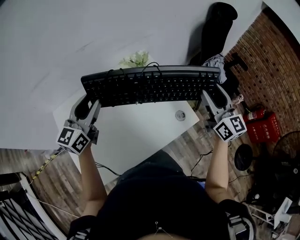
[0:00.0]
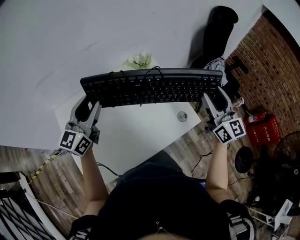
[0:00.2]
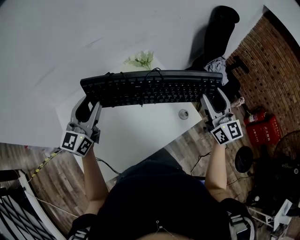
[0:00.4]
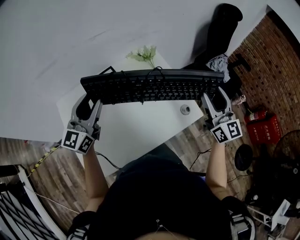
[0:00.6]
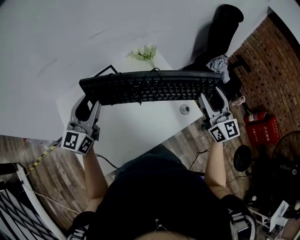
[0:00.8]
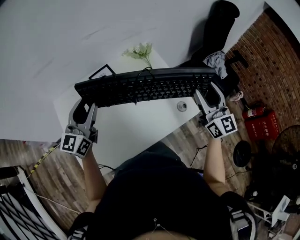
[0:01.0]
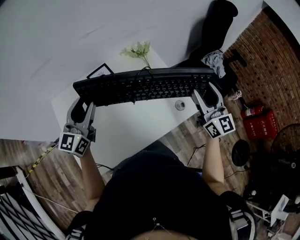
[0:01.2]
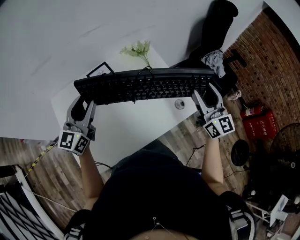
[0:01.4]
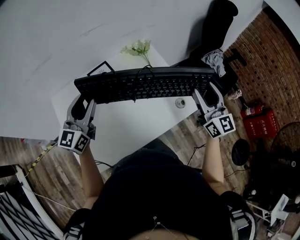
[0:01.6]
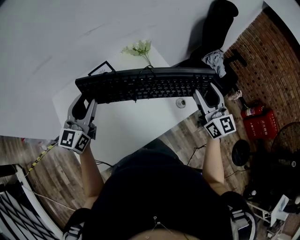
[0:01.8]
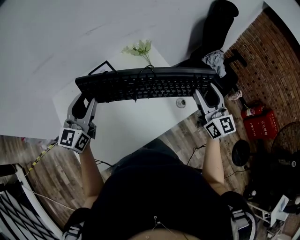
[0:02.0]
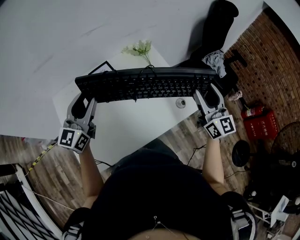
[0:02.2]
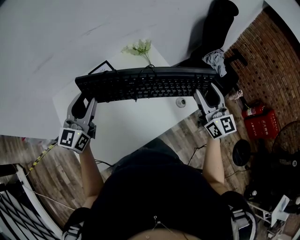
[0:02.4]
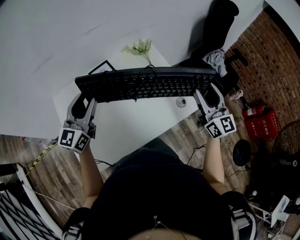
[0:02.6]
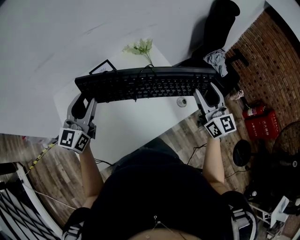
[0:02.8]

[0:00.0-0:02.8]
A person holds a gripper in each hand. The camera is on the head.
0:00.0 to 0:01.4: The grippers both shift backward by roughly 5 cm.
0:01.4 to 0:02.8: Neither gripper changes place.

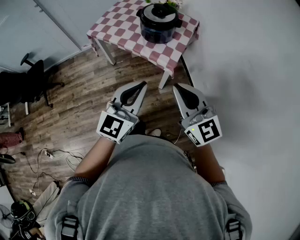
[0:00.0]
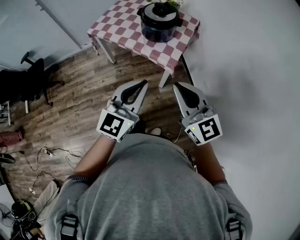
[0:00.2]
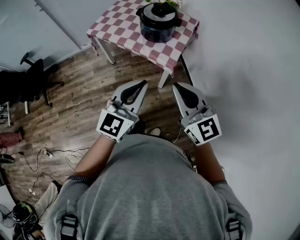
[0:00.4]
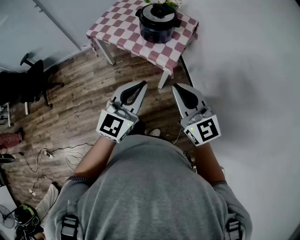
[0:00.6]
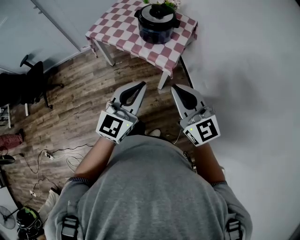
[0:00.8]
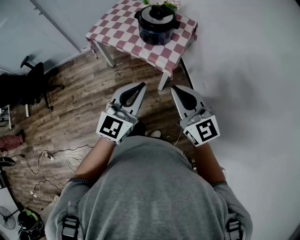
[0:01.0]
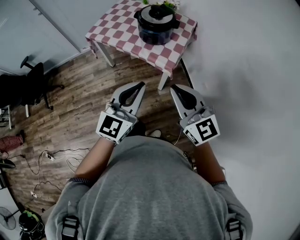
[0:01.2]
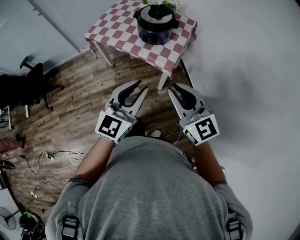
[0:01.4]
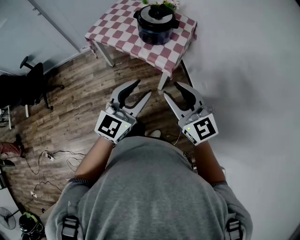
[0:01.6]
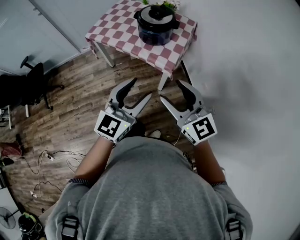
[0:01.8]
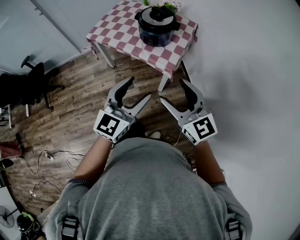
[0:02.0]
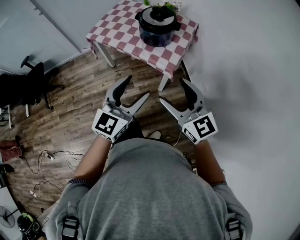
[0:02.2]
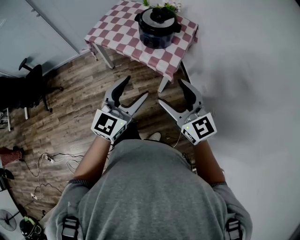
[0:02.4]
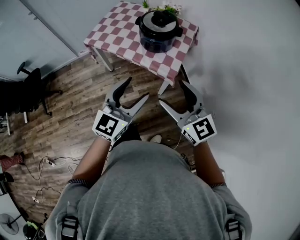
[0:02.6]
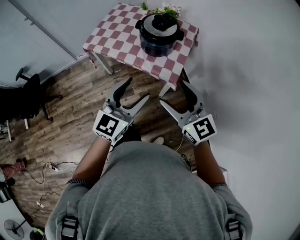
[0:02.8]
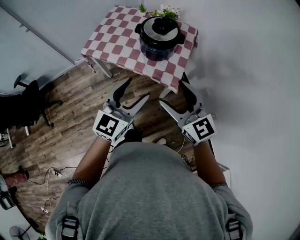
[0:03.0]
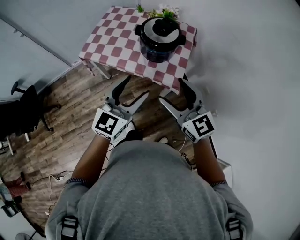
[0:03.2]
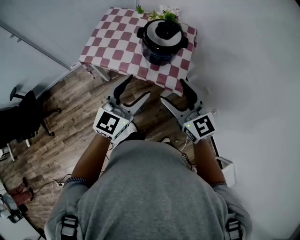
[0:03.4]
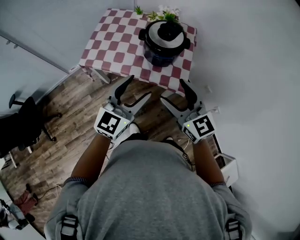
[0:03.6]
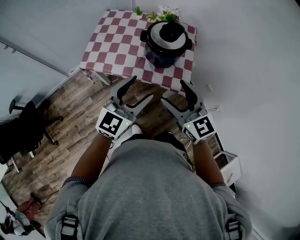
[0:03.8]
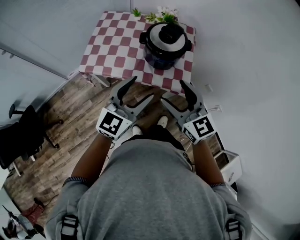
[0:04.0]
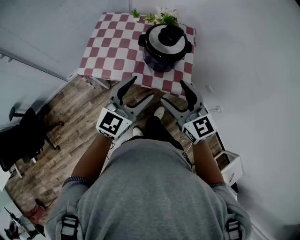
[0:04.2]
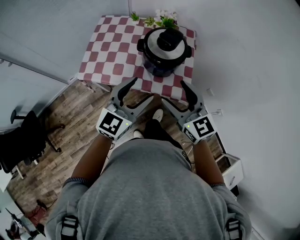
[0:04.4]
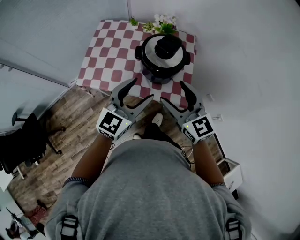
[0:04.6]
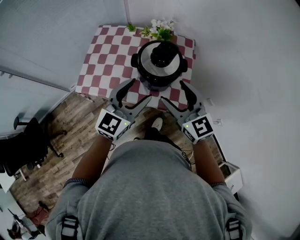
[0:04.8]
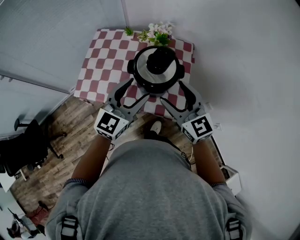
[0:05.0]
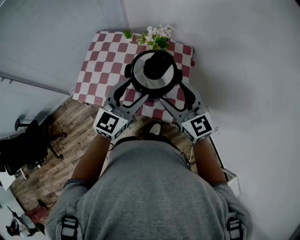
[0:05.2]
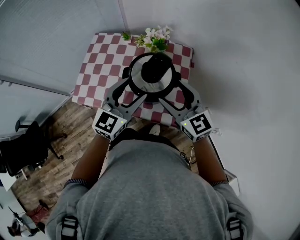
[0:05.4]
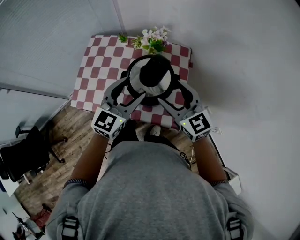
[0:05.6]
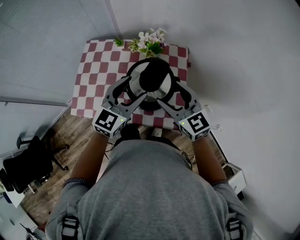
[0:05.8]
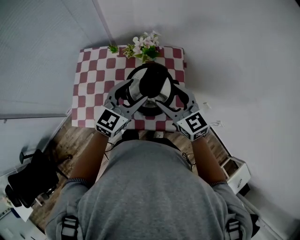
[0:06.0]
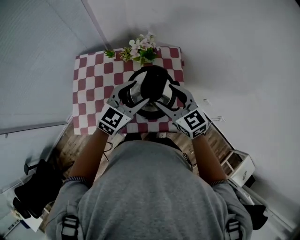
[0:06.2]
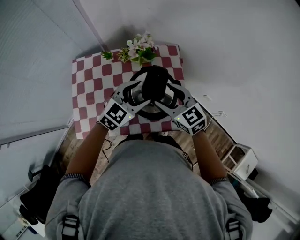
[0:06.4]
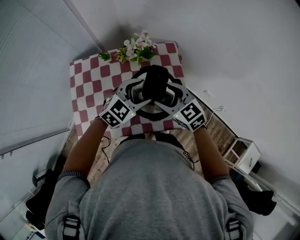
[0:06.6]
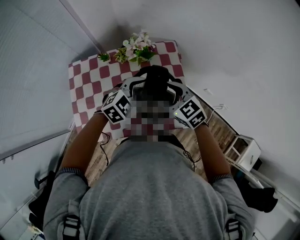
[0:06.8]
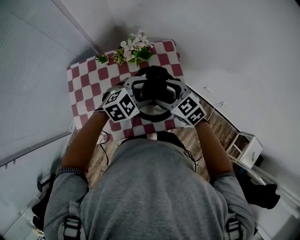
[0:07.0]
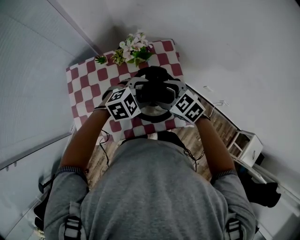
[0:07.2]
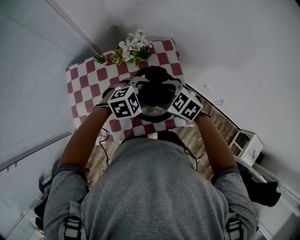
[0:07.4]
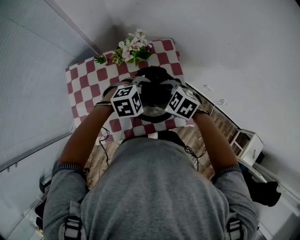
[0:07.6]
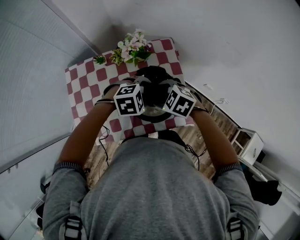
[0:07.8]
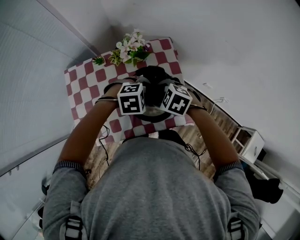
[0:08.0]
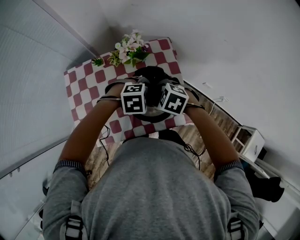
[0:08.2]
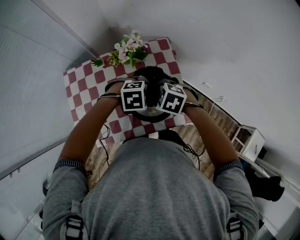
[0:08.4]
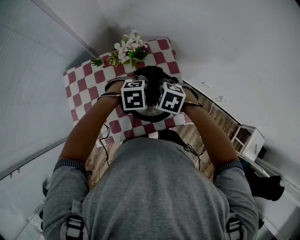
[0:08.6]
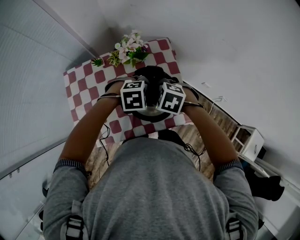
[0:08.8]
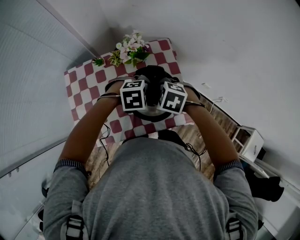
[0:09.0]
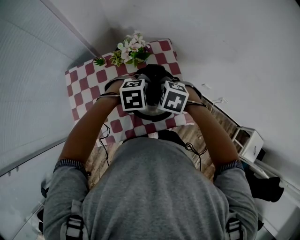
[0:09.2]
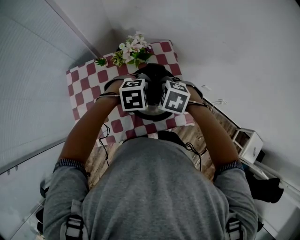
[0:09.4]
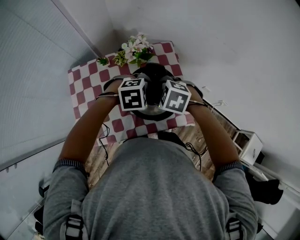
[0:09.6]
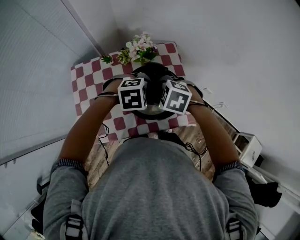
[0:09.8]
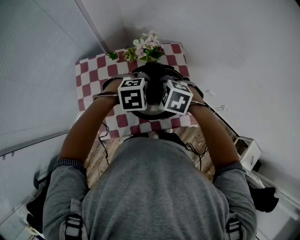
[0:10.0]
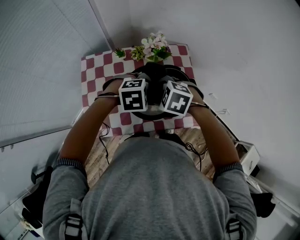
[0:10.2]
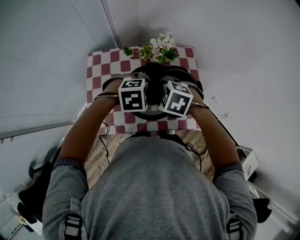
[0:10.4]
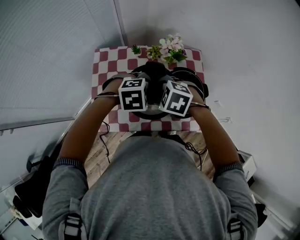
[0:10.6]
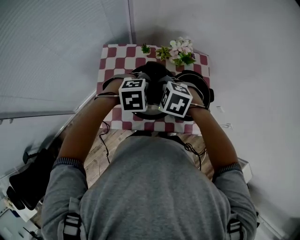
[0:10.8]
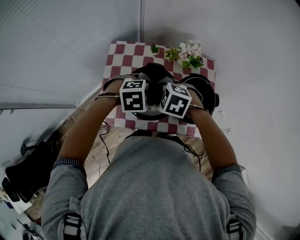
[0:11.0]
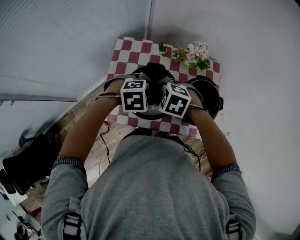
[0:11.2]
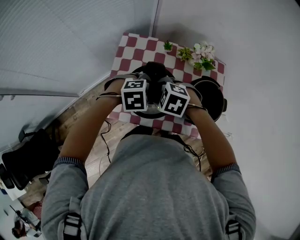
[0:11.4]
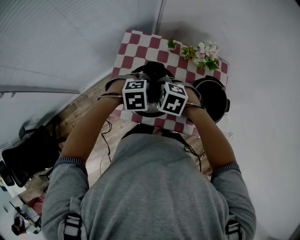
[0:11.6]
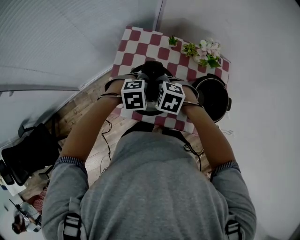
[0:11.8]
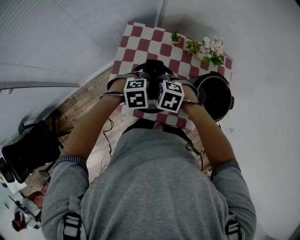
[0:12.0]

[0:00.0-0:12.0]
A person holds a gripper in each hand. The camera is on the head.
0:00.0 to 0:01.6: The right gripper opens up; the left gripper opens.
0:01.6 to 0:03.0: Both grippers move forward and to the left, about 15 cm. The left gripper opens. Meanwhile the right gripper opens up.
0:03.0 to 0:04.4: Both grippers move forward and to the left, approximately 15 cm.
0:04.4 to 0:06.0: Both grippers move forward, about 25 cm.
0:06.0 to 0:07.6: The grippers both shift downward by about 10 cm. The right gripper points its fingers roughly 40 degrees further downward, while the left gripper tilts its fingers approximately 40 degrees downward.
0:07.6 to 0:09.0: The grippers make only small movements.
0:09.0 to 0:10.4: The right gripper ends up about 15 cm from where it was; the left gripper ends up some 15 cm from where it was.
0:10.4 to 0:12.0: The right gripper shifts by some 20 cm, and changes its angle by roughly 20 degrees. Meanwhile the left gripper shifts by approximately 20 cm, and swivels about 20 degrees.

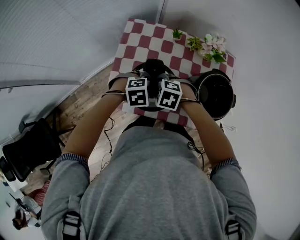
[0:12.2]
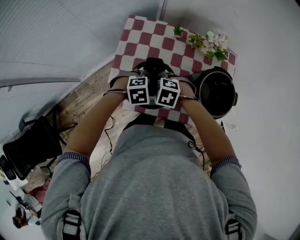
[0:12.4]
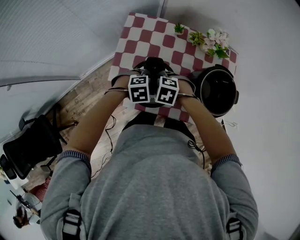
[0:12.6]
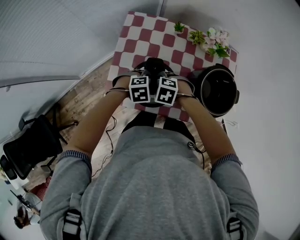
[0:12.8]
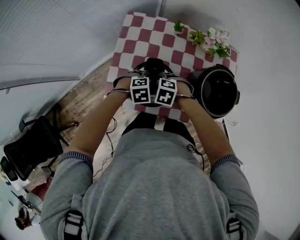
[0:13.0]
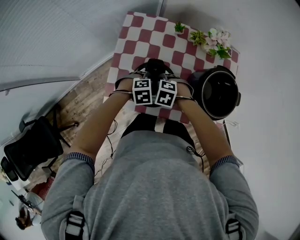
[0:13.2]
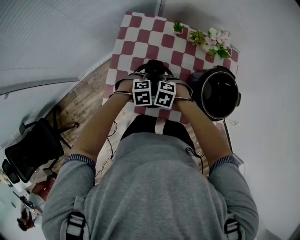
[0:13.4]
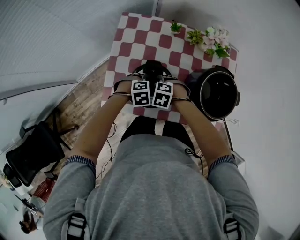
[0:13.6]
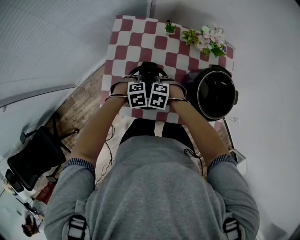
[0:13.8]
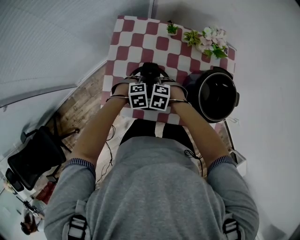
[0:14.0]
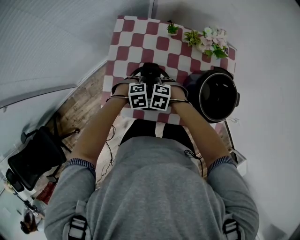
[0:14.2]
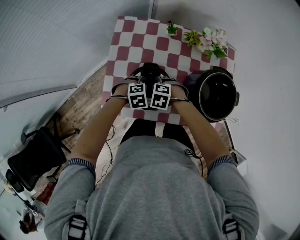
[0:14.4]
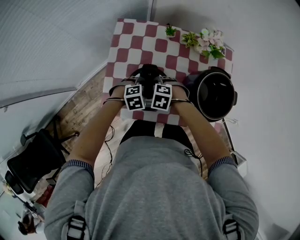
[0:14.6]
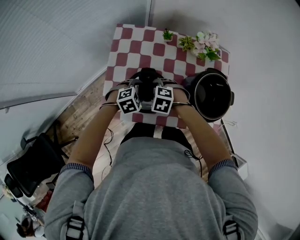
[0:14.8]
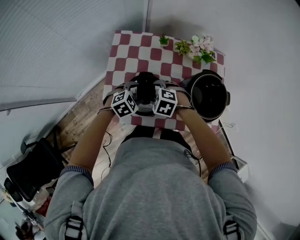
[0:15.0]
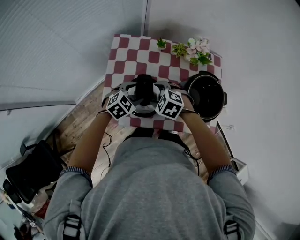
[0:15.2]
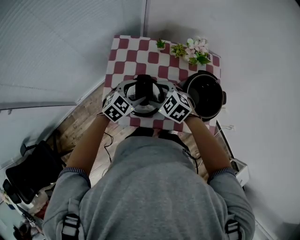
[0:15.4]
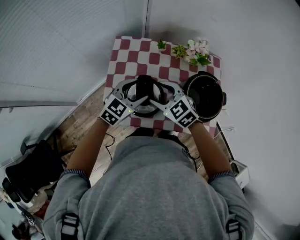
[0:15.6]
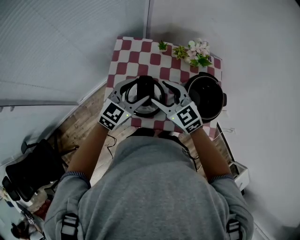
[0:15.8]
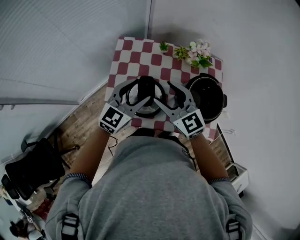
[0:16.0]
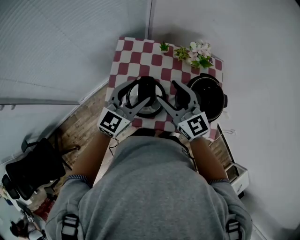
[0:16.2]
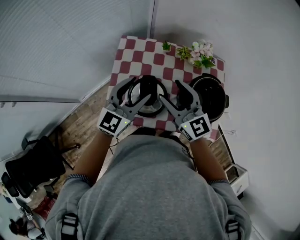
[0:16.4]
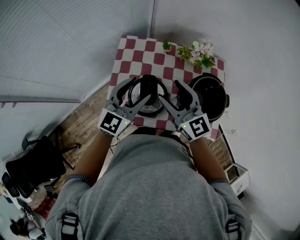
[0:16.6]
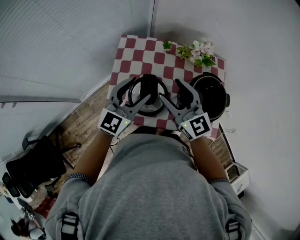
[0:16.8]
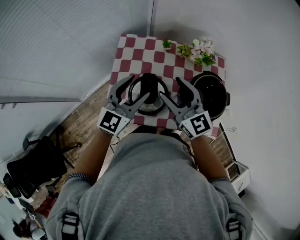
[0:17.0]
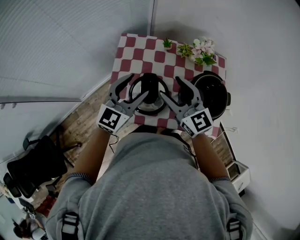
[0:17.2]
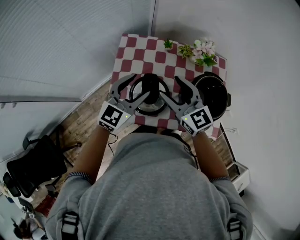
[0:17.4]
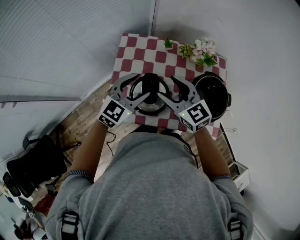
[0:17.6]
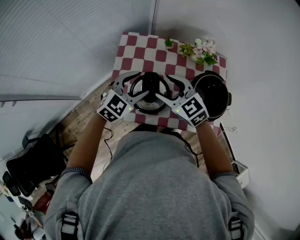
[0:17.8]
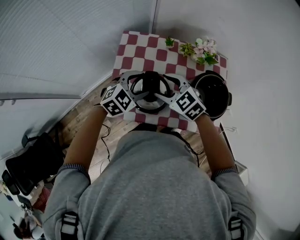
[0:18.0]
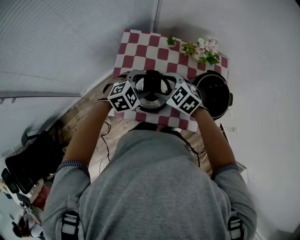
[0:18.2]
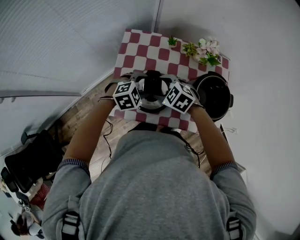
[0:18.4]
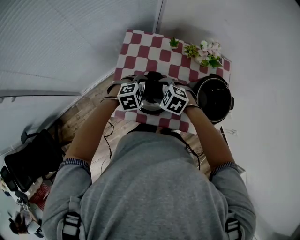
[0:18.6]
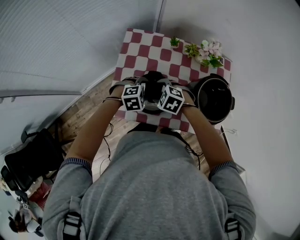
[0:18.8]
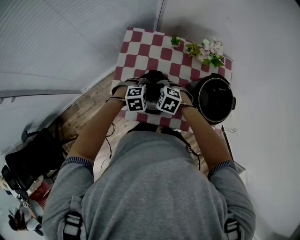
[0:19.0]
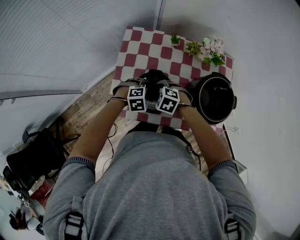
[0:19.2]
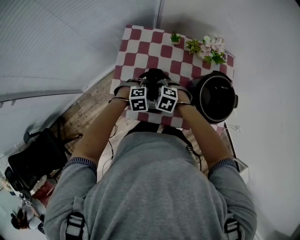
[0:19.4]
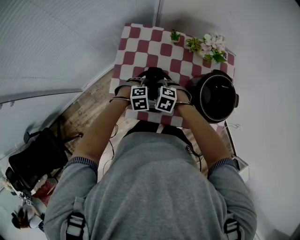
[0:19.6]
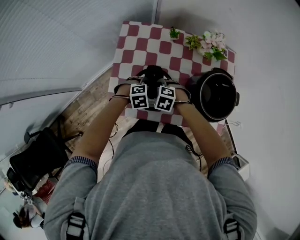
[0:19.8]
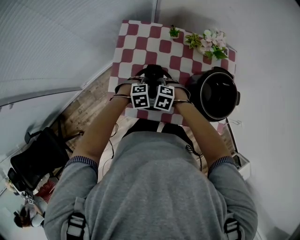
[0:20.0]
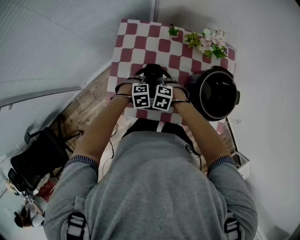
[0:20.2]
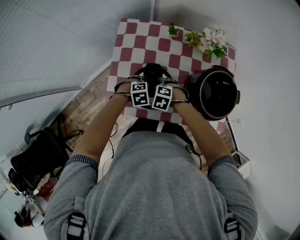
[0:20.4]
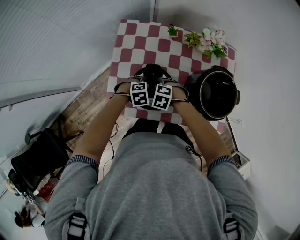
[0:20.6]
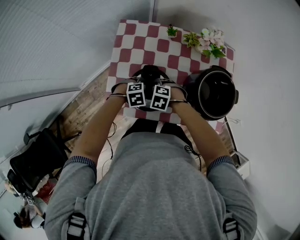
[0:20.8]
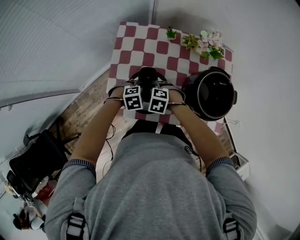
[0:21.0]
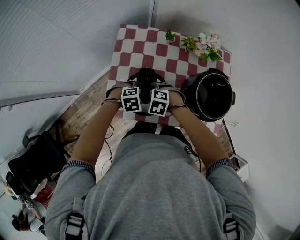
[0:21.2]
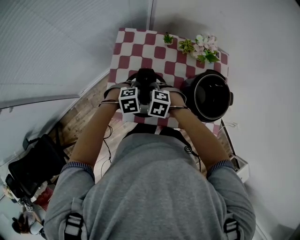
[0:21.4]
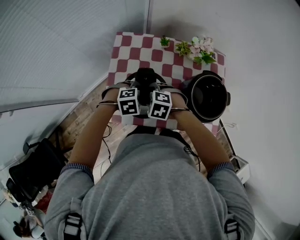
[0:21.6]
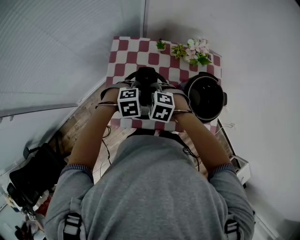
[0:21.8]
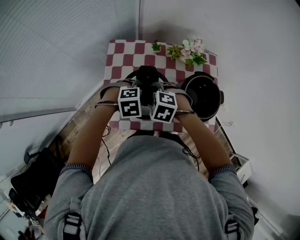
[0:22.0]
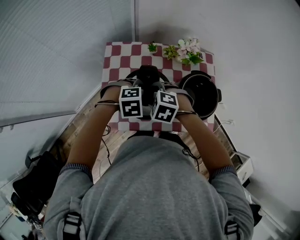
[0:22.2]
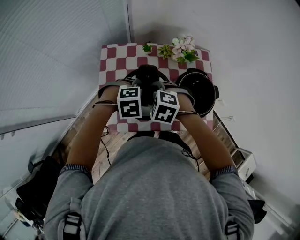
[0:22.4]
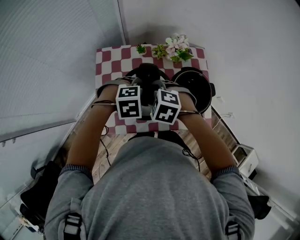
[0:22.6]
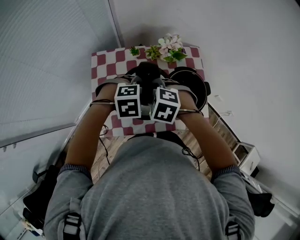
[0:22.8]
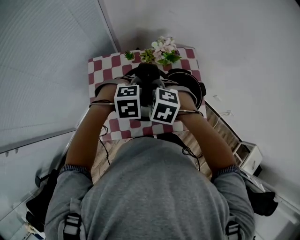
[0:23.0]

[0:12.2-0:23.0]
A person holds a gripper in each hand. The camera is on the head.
0:12.2 to 0:13.8: The grippers both shift downward by approximately 10 cm.
0:13.8 to 0:15.2: Both grippers travel together upward, about 10 cm. The left gripper swivels approximately 30 degrees.
0:15.2 to 0:16.8: Both grippers move upward, about 20 cm. The right gripper tips its fingers upward by some 60 degrees; the left gripper points its fingers some 40 degrees further upward.
0:16.8 to 0:18.4: Both grippers travel together downward, some 15 cm. The right gripper points its fingers some 50 degrees further downward. The left gripper angles its fingers downward, by about 50 degrees.
0:18.4 to 0:20.0: The grippers both shift downward by some 15 cm. The right gripper rotates some 20 degrees.
0:20.0 to 0:21.4: Both grippers move upward, approximately 5 cm.
0:21.4 to 0:23.0: The two grippers go about 20 cm upward. The left gripper swivels approximately 20 degrees.
